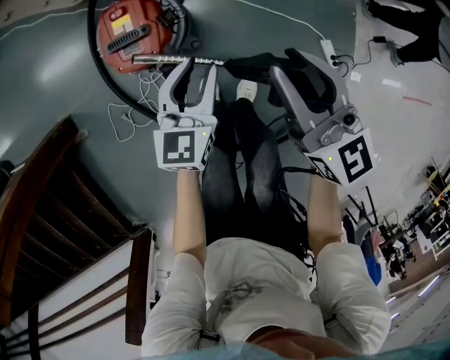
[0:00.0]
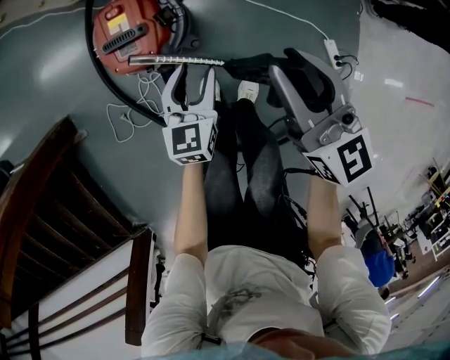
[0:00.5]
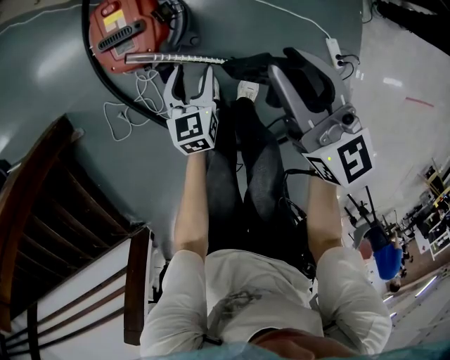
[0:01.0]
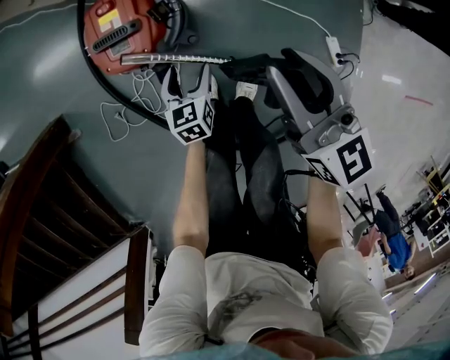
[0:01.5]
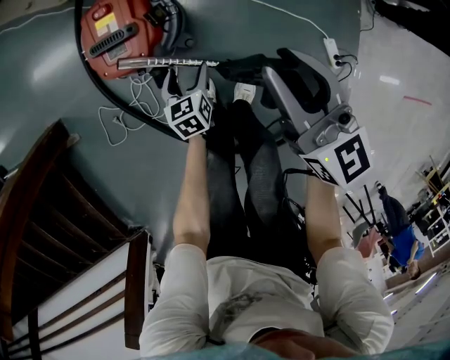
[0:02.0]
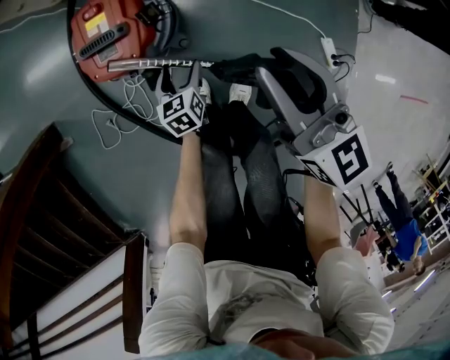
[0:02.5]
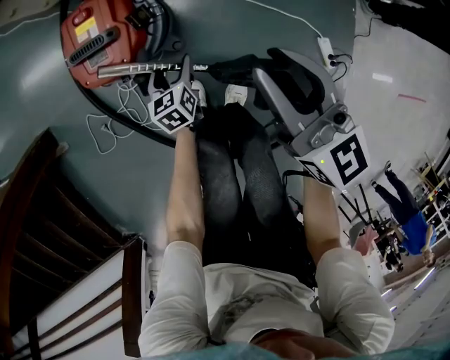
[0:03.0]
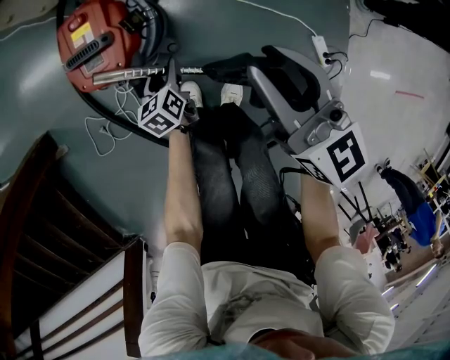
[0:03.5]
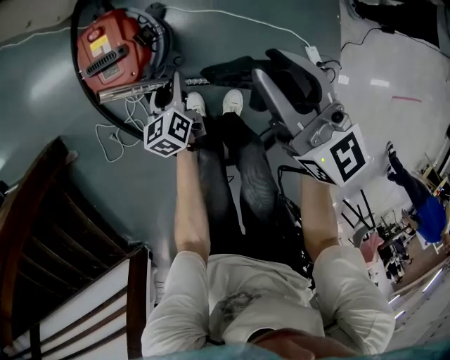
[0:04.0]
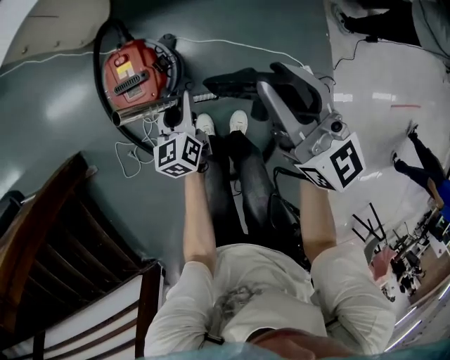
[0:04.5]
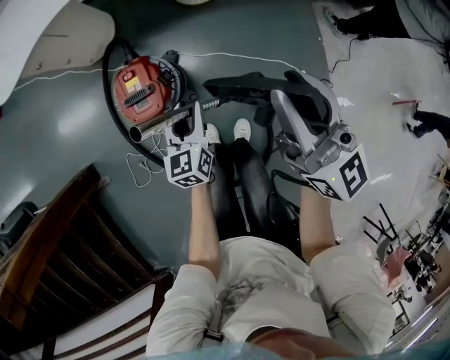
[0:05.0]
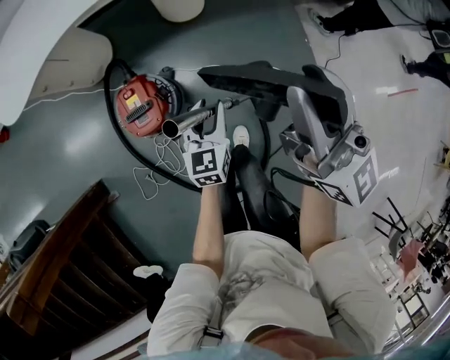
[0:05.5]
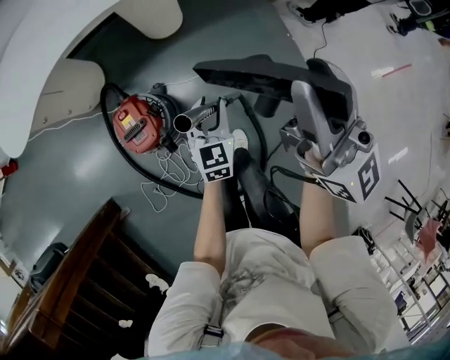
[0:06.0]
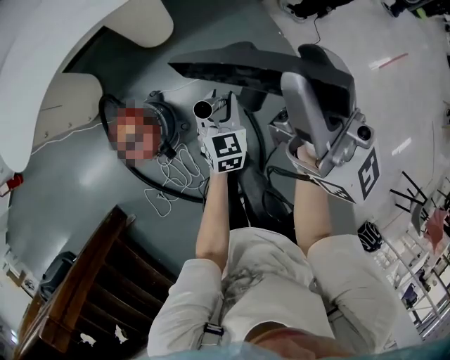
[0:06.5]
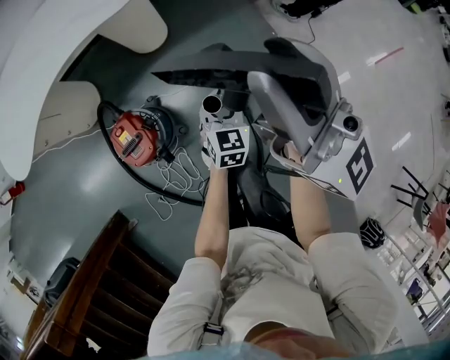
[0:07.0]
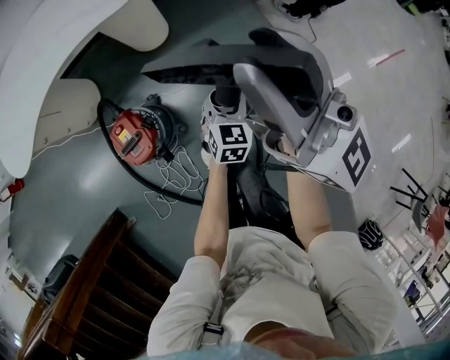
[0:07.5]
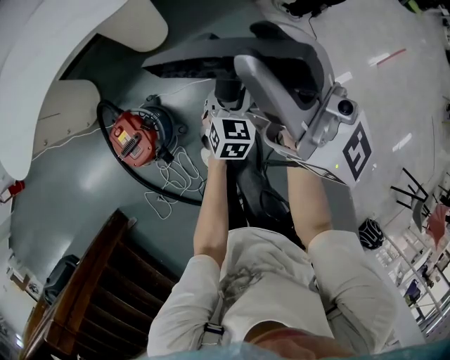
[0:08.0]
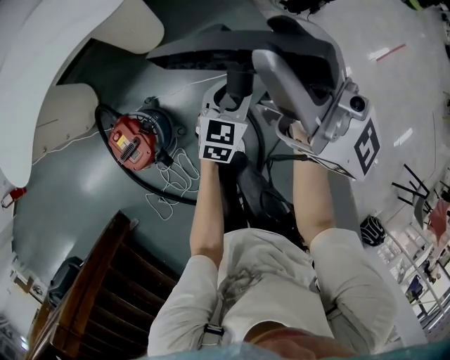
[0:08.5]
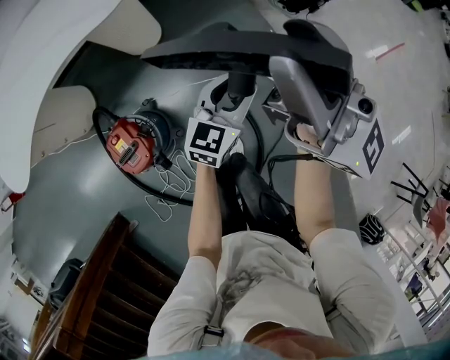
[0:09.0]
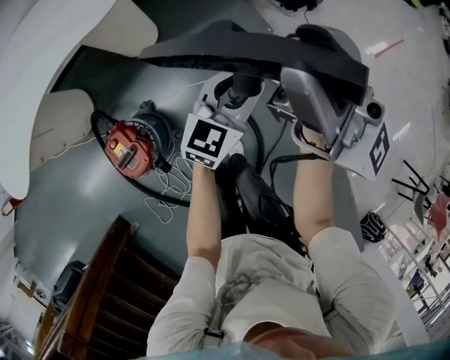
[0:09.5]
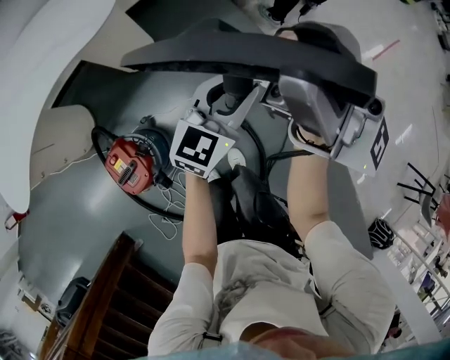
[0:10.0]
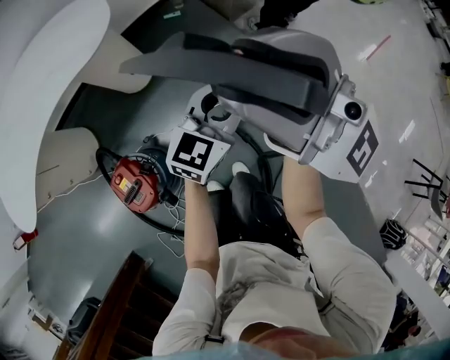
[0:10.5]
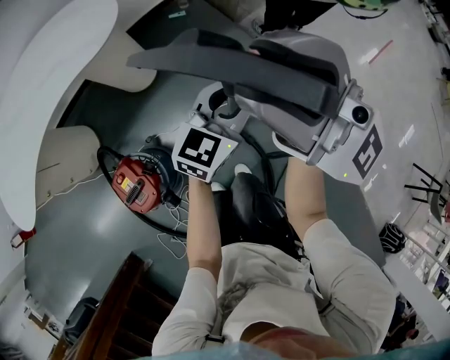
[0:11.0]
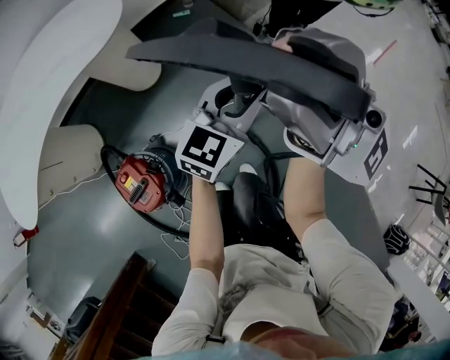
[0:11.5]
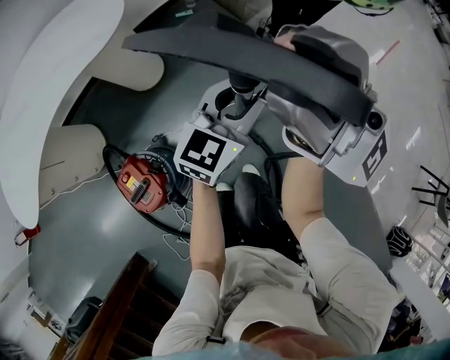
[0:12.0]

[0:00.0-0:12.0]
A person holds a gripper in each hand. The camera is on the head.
0:00.0 to 0:02.0: The left gripper moves downward, some 25 cm, rotates about 30 degrees, and opens up. The right gripper is displaced downward by about 5 cm.
0:02.0 to 0:04.0: The right gripper shifts approximately 5 cm upward, while the left gripper shifts approximately 10 cm upward, and closes its fingers.
0:04.0 to 0:06.0: Both grippers travel together upward and to the right, roughly 35 cm. The left gripper rolls clockwise, seen from behind, by some 50 degrees; the right gripper changes its angle by about 40 degrees.
0:06.0 to 0:08.0: The right gripper heads upward, covering approximately 5 cm. The left gripper goes approximately 15 cm to the right, and swivels roughly 20 degrees.
0:08.0 to 0:10.0: The left gripper shifts approximately 10 cm upward and to the right, and swivels approximately 30 degrees. The right gripper is displaced to the right by roughly 5 cm.
0:10.0 to 0:12.0: The grippers stay close to where they were, moving slightly.

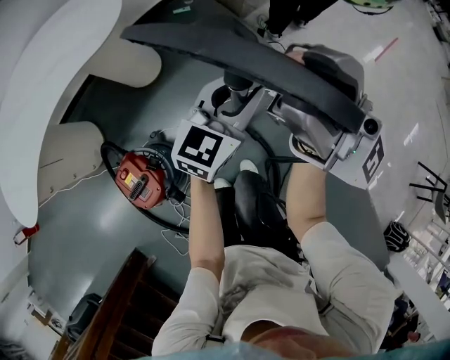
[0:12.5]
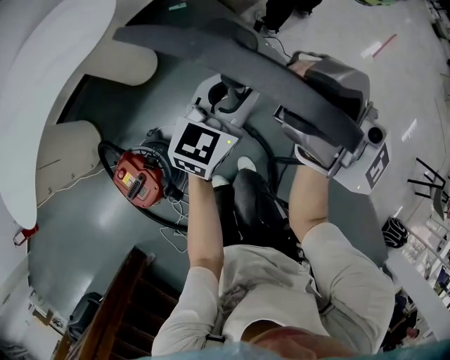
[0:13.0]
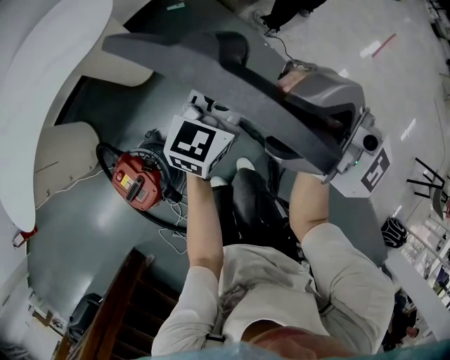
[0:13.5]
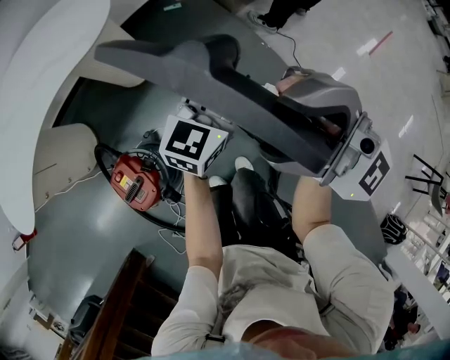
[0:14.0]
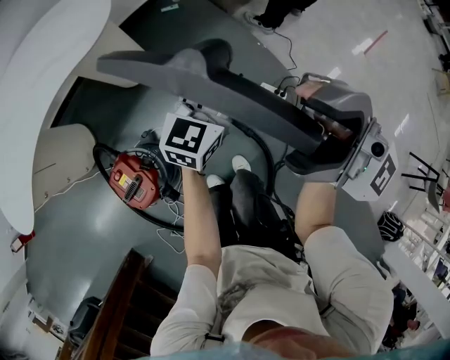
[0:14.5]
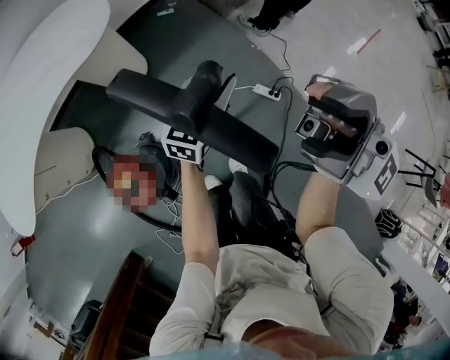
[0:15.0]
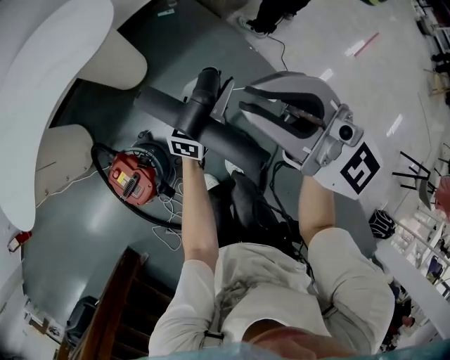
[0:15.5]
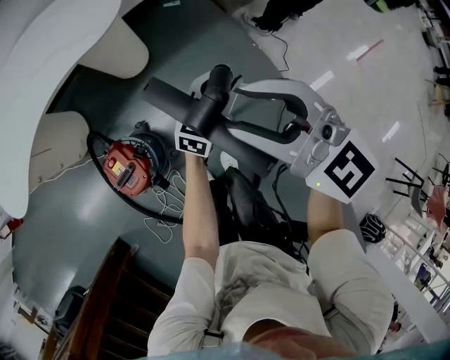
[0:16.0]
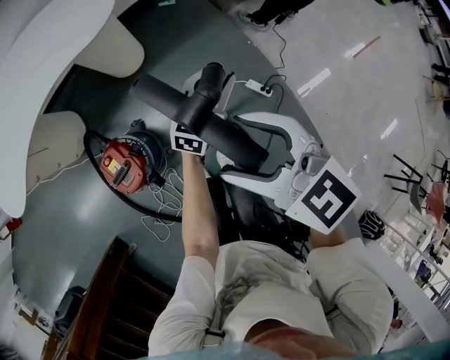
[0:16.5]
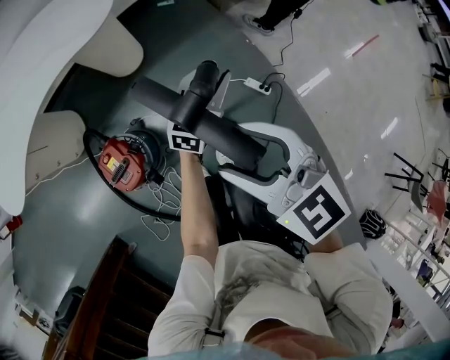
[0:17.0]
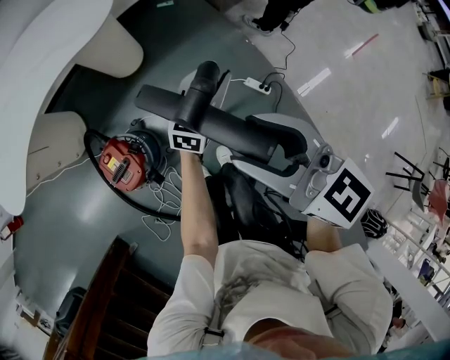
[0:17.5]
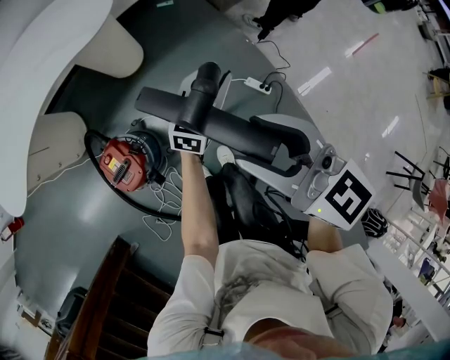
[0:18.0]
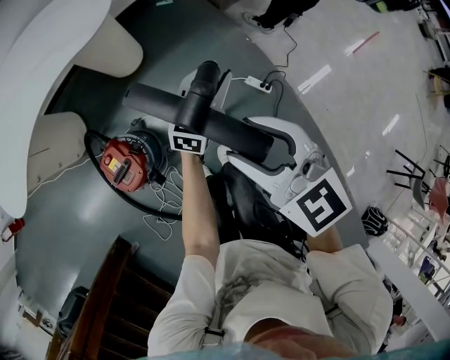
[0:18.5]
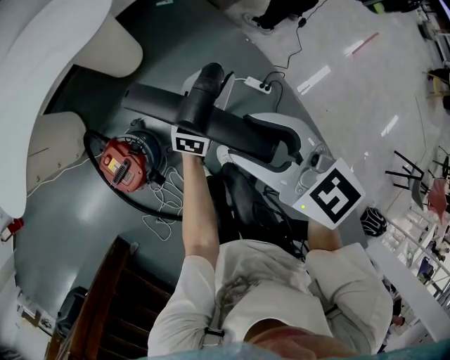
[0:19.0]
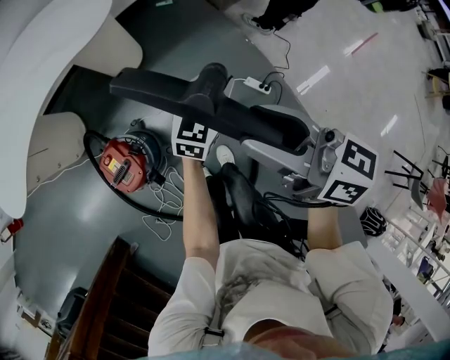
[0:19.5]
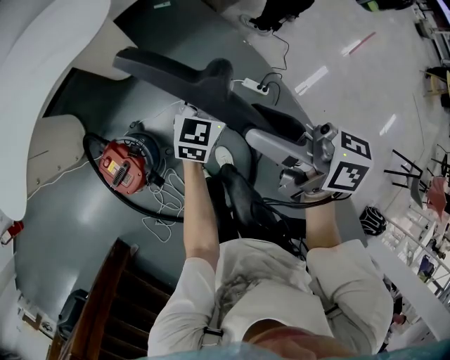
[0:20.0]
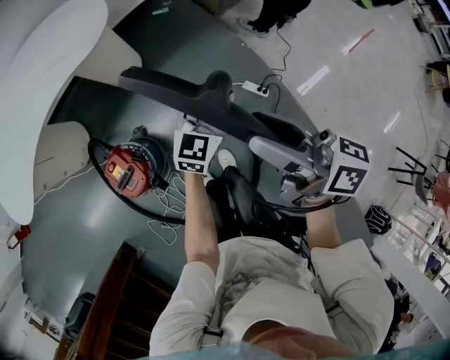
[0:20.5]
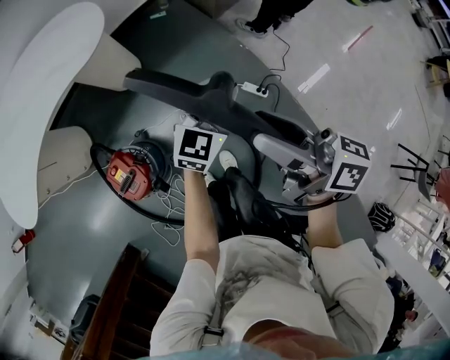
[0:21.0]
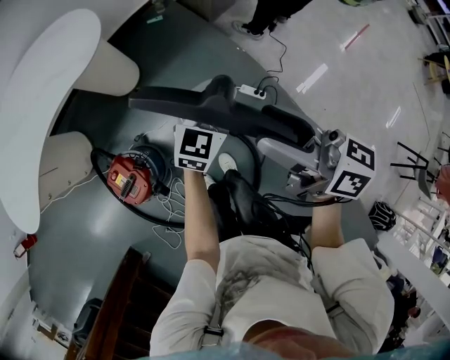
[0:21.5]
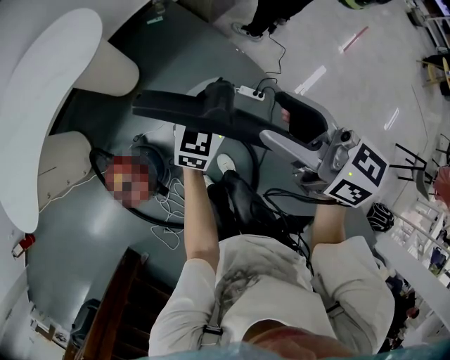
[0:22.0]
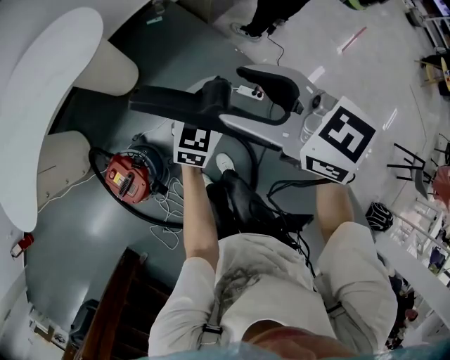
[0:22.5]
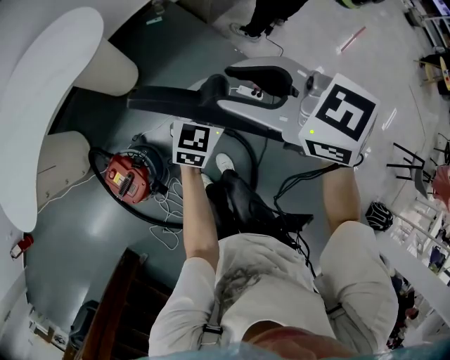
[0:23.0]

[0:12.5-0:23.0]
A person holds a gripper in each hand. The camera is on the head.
0:12.5 to 0:14.5: The grippers make only small movements.
0:14.5 to 0:16.5: The right gripper moves downward, roughly 10 cm, points its fingers roughly 60 degrees further downward, and closes, then reopens.
0:19.0 to 0:21.0: The left gripper goes approximately 5 cm upward. Meanwhile the right gripper goes roughly 5 cm to the right, and twists roughly 50 degrees clockwise, seen from behind.
0:21.0 to 0:23.0: The right gripper is displaced forward by some 5 cm, and rotates around the line of its fingers by roughly 50 degrees, counterclockwise from behind.

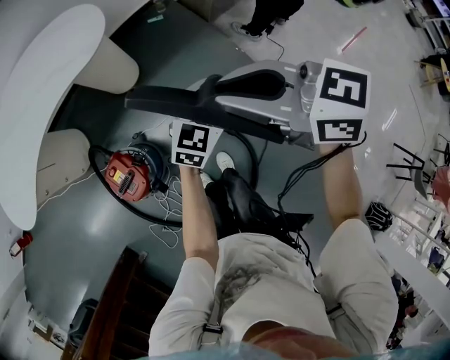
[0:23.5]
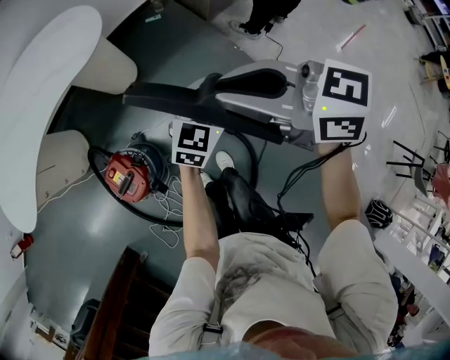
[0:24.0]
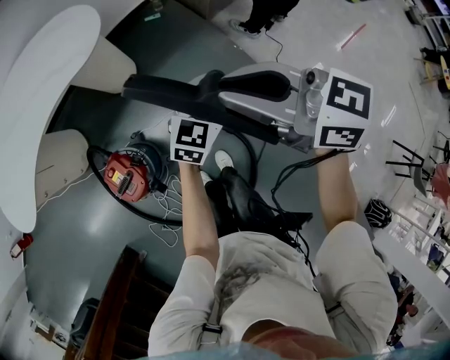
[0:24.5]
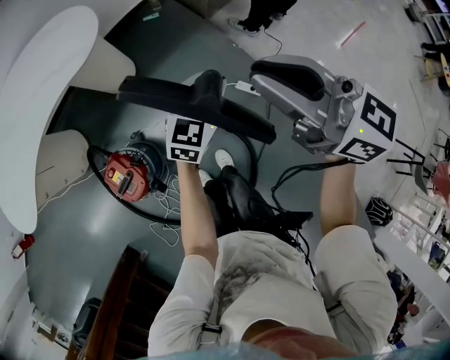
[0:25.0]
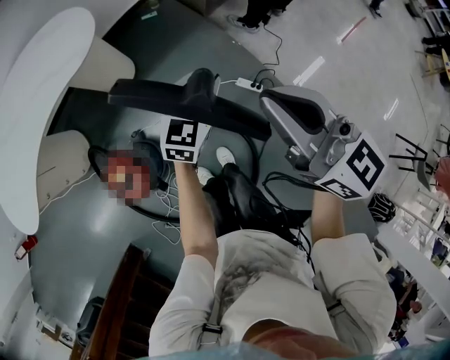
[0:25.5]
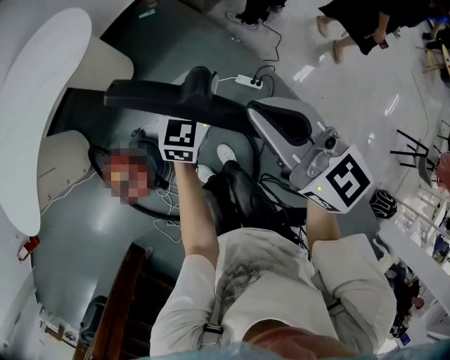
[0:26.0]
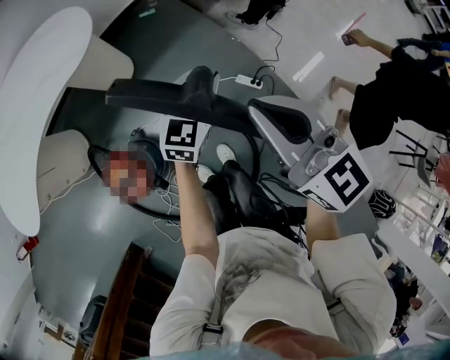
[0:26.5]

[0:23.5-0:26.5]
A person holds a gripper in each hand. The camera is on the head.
0:23.5 to 0:25.0: The right gripper heads to the right, covering about 5 cm, and changes its angle by some 20 degrees.
0:25.0 to 0:26.5: The right gripper moves about 5 cm, and rotates some 20 degrees.

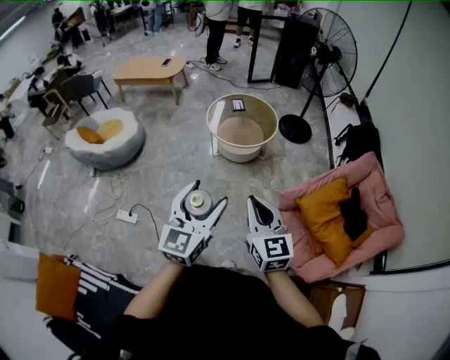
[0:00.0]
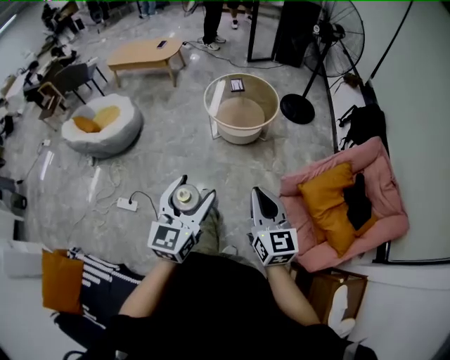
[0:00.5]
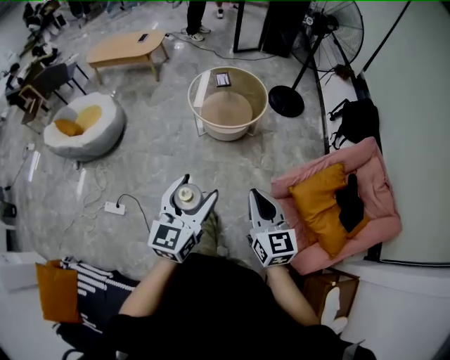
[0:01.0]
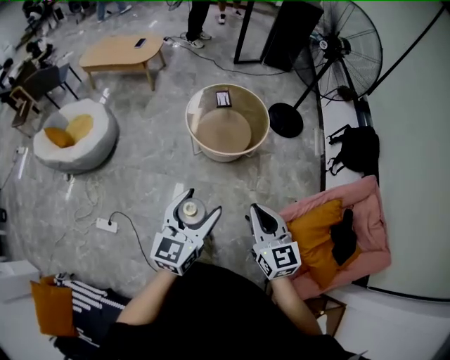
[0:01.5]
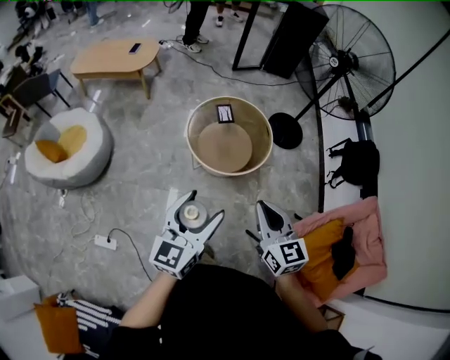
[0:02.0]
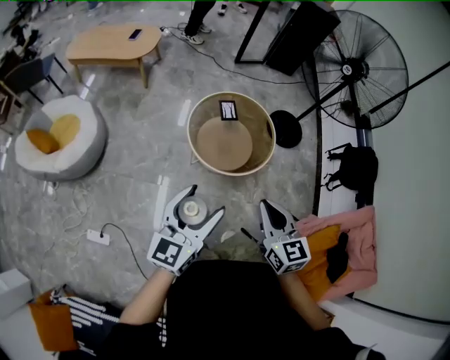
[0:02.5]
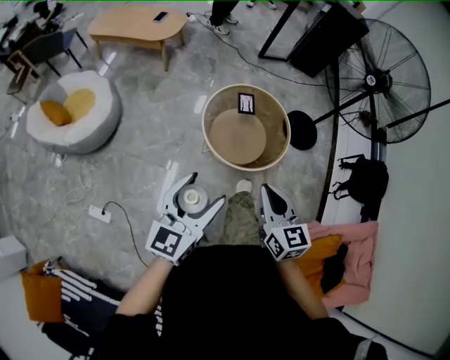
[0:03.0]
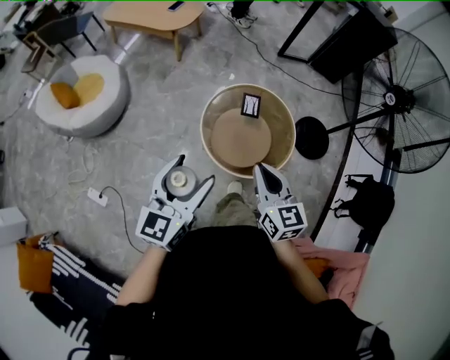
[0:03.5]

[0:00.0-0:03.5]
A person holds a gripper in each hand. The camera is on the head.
0:00.0 to 0:02.0: The two grippers travel together, forward, approximately 40 cm.
0:02.0 to 0:03.5: Both grippers travel together forward, about 25 cm. The left gripper swivels some 20 degrees.
